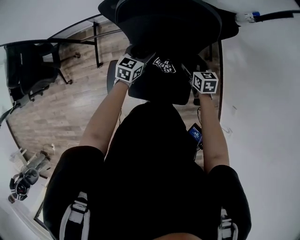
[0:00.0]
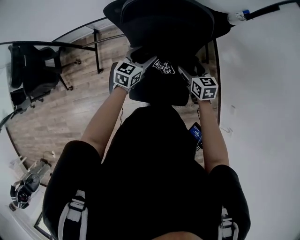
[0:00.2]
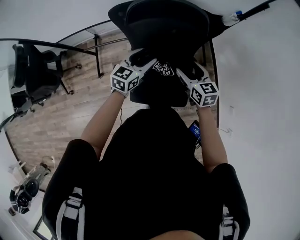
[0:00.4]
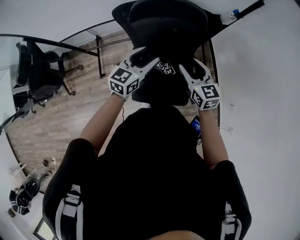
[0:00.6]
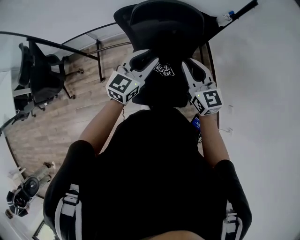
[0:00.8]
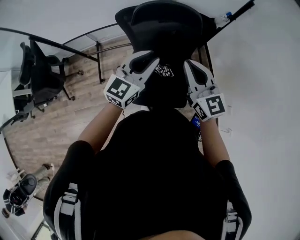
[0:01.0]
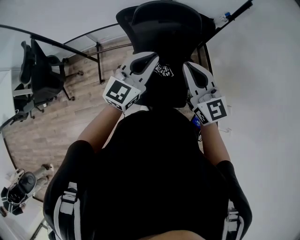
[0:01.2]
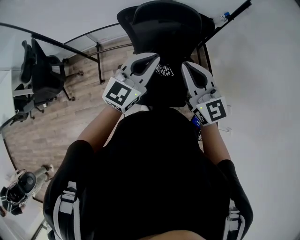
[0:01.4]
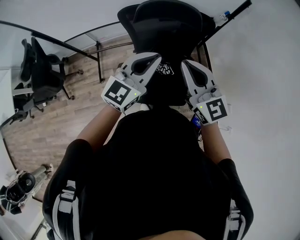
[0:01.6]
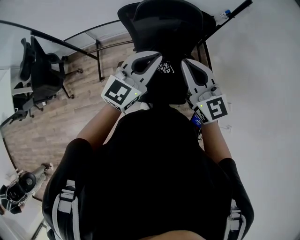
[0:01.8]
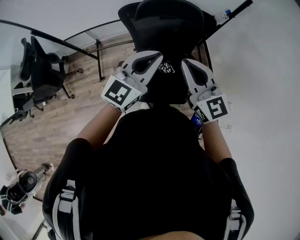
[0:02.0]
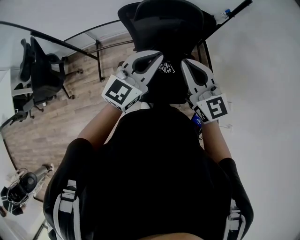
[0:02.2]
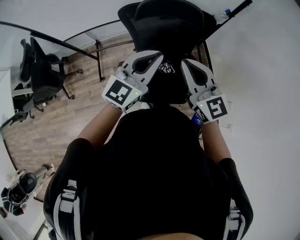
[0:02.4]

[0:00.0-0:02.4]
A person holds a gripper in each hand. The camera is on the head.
0:00.0 to 0:01.2: Both grippers move upward, some 40 cm. The left gripper changes its angle by roughly 30 degrees, and closes its fingers. Meanwhile the right gripper points its fingers some 40 degrees further upward, and closes up.
0:01.2 to 0:02.4: The grippers stay close to where they were, moving slightly.

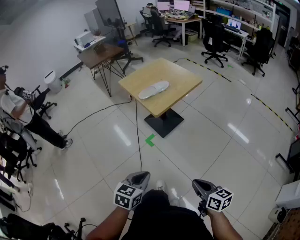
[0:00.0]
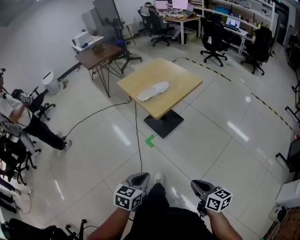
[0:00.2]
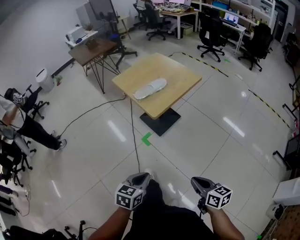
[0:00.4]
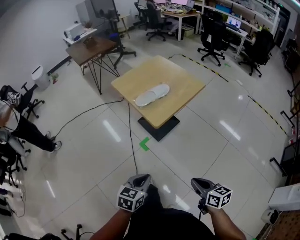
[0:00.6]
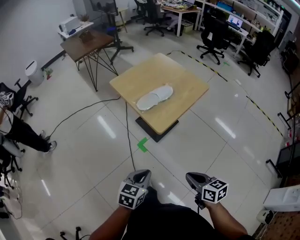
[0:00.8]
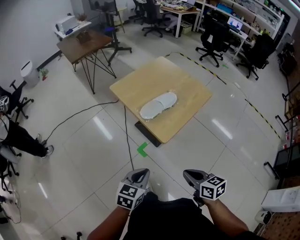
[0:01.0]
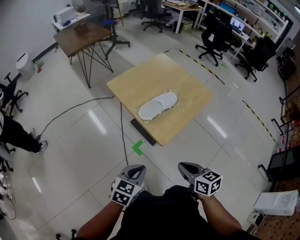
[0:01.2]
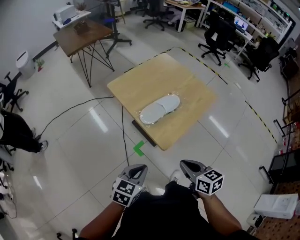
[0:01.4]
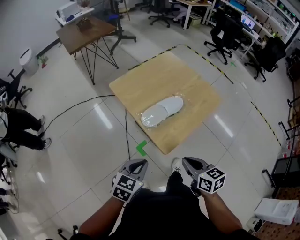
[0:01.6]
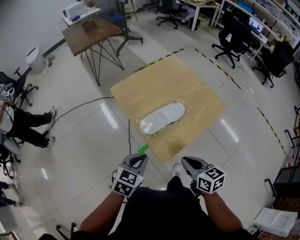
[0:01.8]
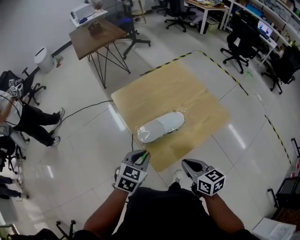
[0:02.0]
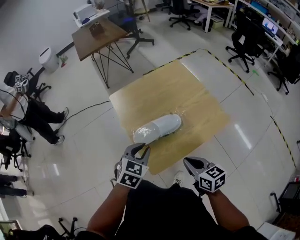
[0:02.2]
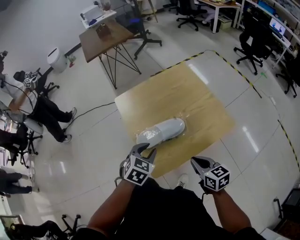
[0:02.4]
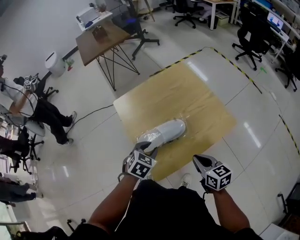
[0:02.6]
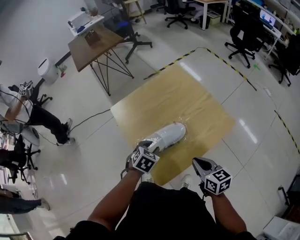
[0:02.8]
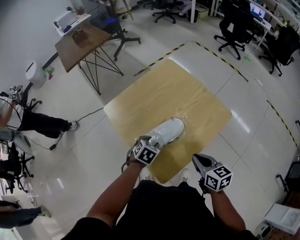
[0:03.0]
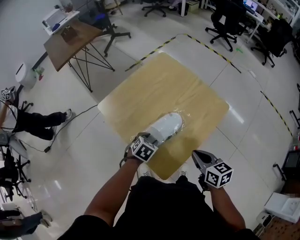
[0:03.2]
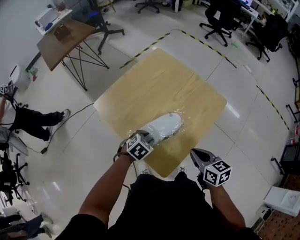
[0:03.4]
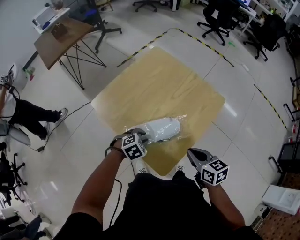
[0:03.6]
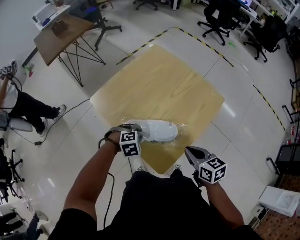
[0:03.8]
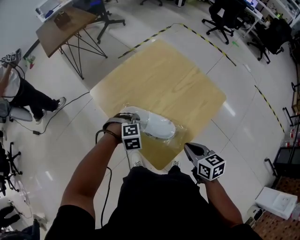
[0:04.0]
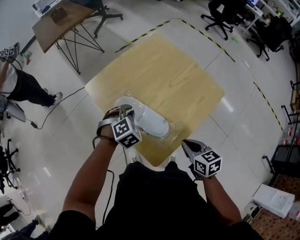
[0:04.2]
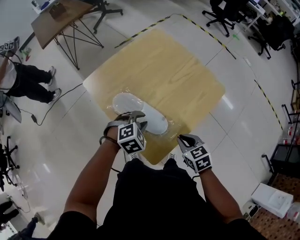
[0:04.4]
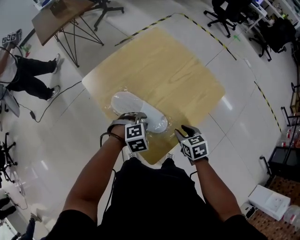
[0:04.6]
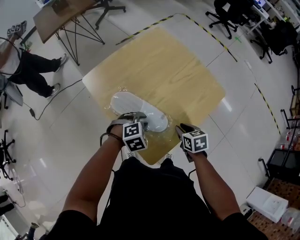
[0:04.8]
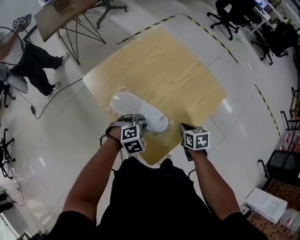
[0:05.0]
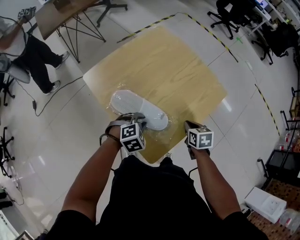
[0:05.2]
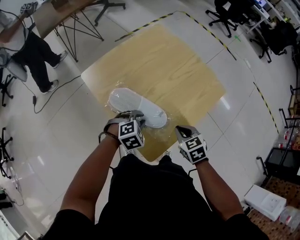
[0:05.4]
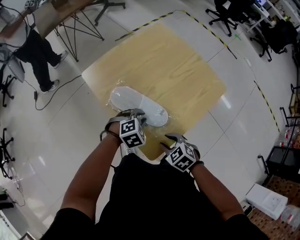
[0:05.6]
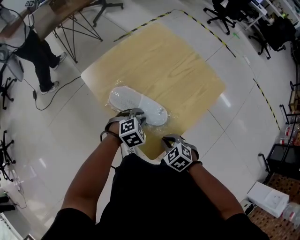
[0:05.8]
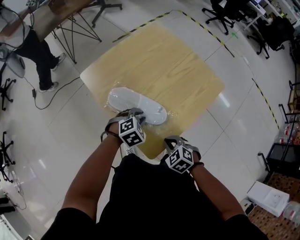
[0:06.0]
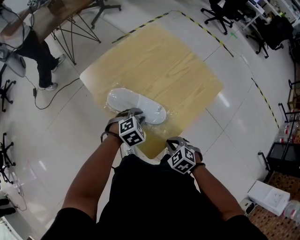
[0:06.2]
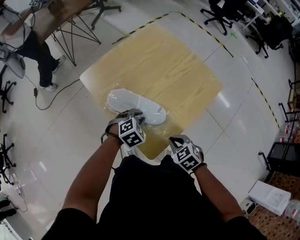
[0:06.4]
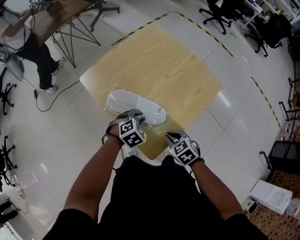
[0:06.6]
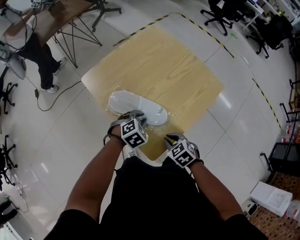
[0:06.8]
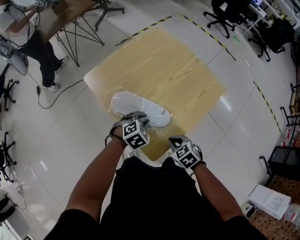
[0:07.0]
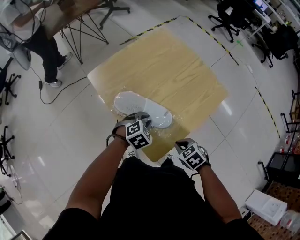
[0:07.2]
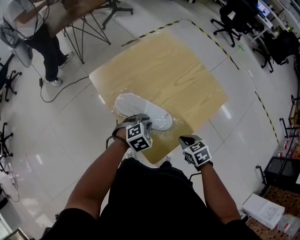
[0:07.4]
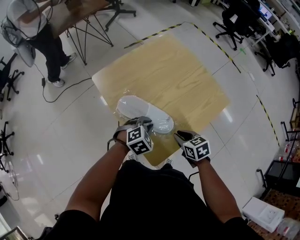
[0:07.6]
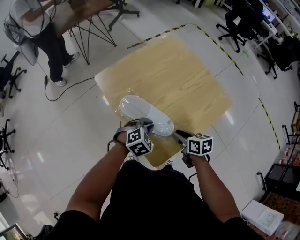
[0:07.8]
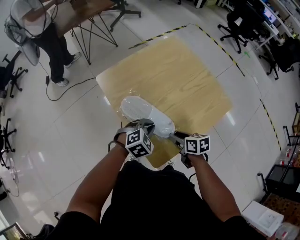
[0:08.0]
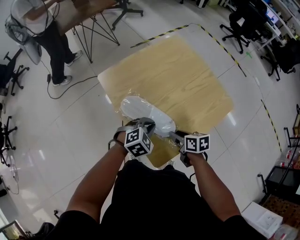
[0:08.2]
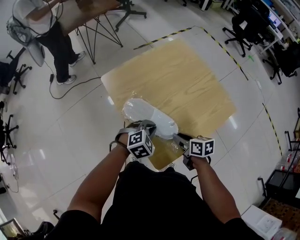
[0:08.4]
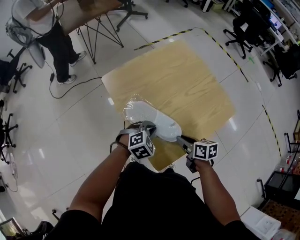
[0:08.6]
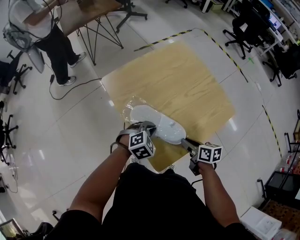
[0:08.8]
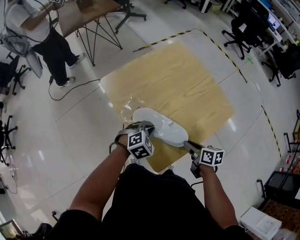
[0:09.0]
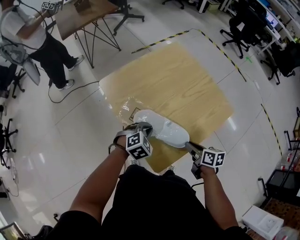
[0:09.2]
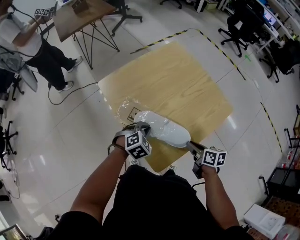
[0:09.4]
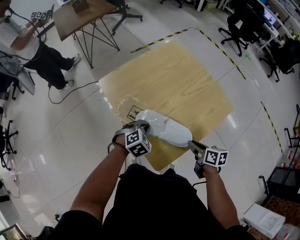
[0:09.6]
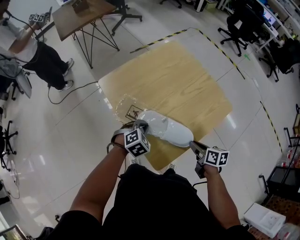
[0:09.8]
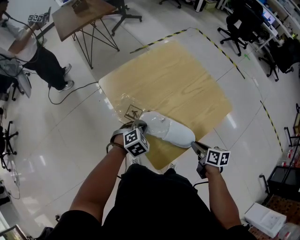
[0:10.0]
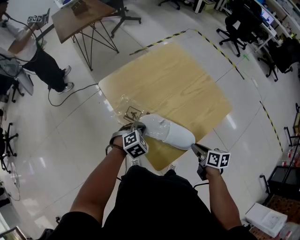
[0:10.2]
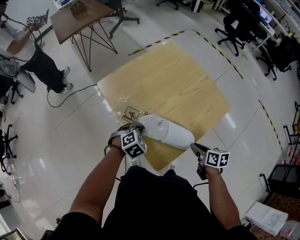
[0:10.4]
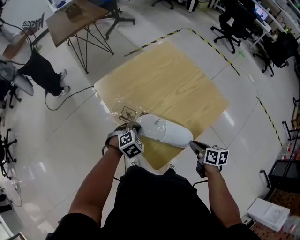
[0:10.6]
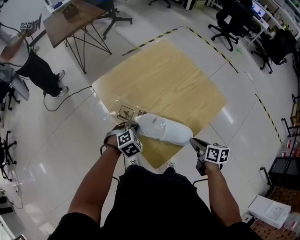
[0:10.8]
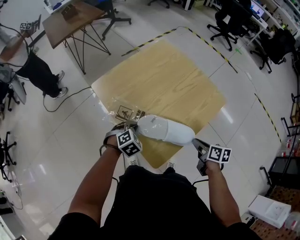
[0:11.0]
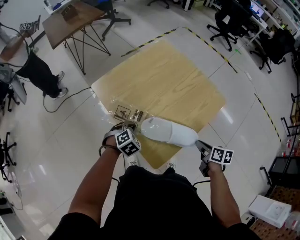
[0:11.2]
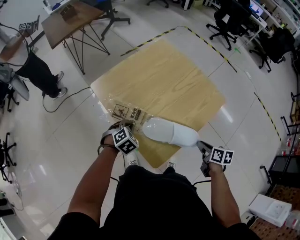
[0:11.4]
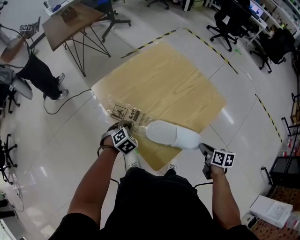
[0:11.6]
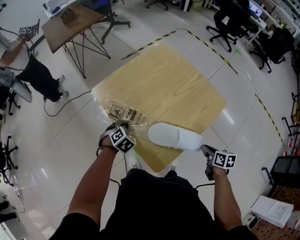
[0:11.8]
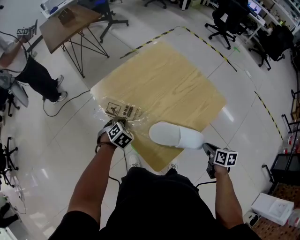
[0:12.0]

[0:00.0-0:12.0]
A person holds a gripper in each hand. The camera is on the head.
0:00.0 to 0:01.6: Both grippers move forward, roughly 40 cm.
0:01.6 to 0:03.0: The right gripper is displaced forward and to the right by approximately 20 cm, while the left gripper is displaced forward, downward and to the right by some 30 cm, swivels about 30 degrees, and opens up.
0:03.0 to 0:04.4: The right gripper is displaced downward by some 10 cm, and swivels some 30 degrees, while the left gripper swivels roughly 40 degrees.
0:04.4 to 0:06.0: The right gripper moves backward, downward and to the left, some 10 cm, rotates some 30 degrees, and opens and closes again.
0:06.0 to 0:07.6: The right gripper travels forward by about 10 cm, and changes its angle by about 30 degrees.
0:07.6 to 0:09.0: The right gripper swivels roughly 30 degrees.
0:09.0 to 0:10.4: The right gripper moves approximately 5 cm.
0:10.4 to 0:12.0: The right gripper heads to the right, covering roughly 10 cm, while the left gripper travels to the left and forward by some 10 cm.

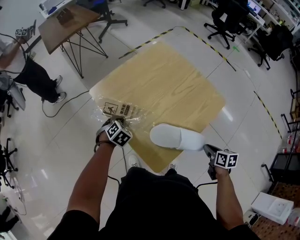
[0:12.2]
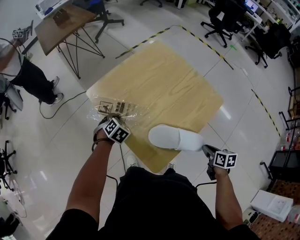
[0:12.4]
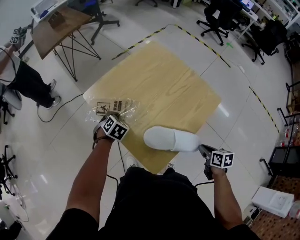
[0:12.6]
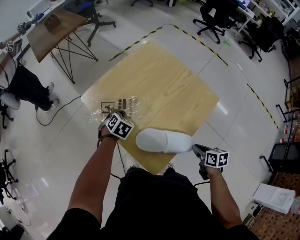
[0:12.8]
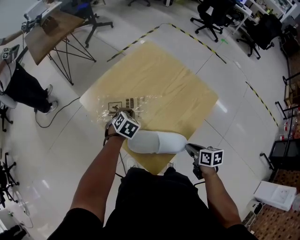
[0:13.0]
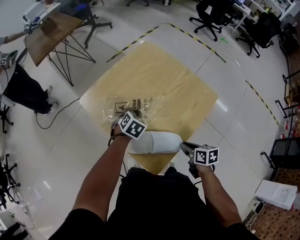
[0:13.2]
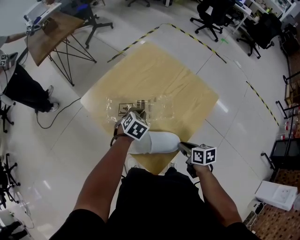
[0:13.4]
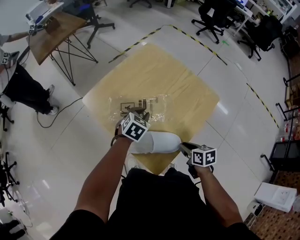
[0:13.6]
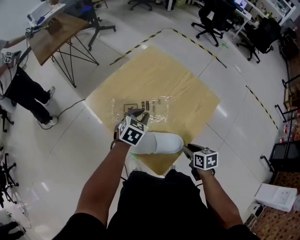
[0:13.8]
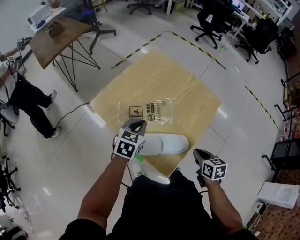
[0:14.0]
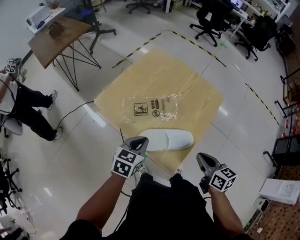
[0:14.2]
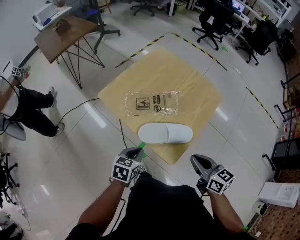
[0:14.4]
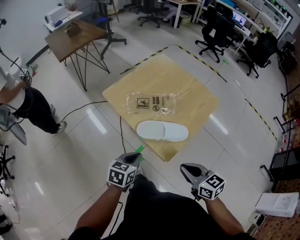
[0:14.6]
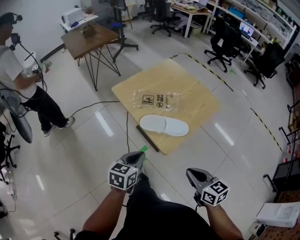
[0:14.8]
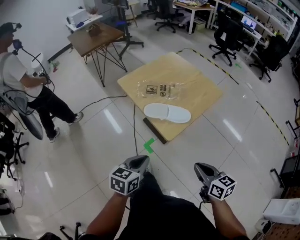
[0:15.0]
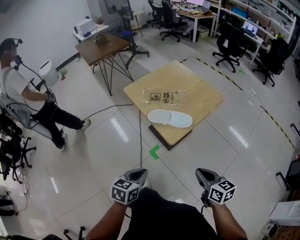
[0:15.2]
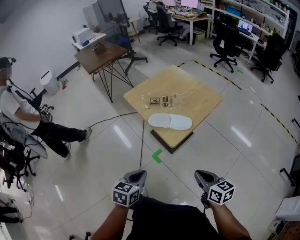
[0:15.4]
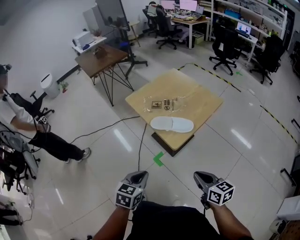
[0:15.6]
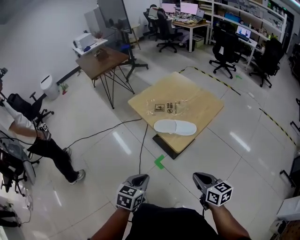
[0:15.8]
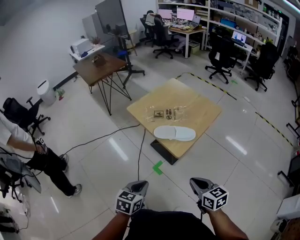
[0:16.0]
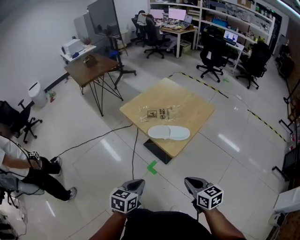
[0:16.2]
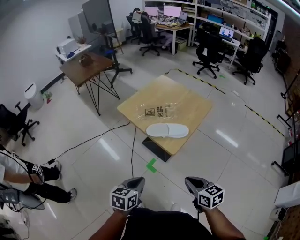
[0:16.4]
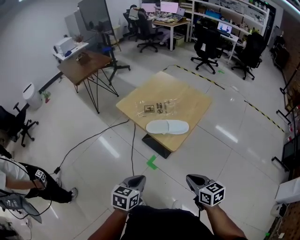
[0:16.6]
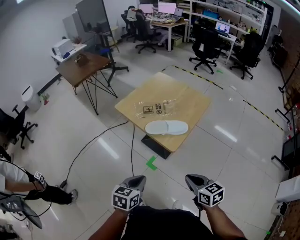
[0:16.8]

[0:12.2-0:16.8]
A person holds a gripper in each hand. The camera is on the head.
0:12.2 to 0:13.8: The right gripper travels to the left by some 10 cm. Meanwhile the left gripper goes approximately 15 cm to the right and upward, and changes its angle by roughly 30 degrees.
0:13.8 to 0:15.2: The right gripper moves backward and upward, some 35 cm, changes its angle by some 30 degrees, and closes its fingers; the left gripper travels backward by about 50 cm, and swivels roughly 30 degrees.
0:15.2 to 0:16.8: The right gripper goes approximately 10 cm to the left. Meanwhile the left gripper is displaced to the left by roughly 5 cm.

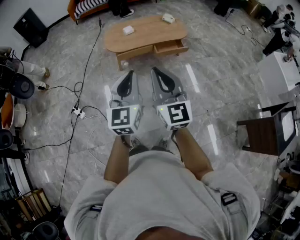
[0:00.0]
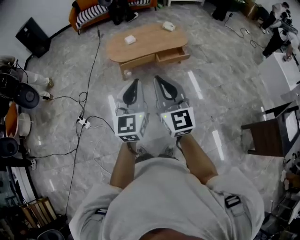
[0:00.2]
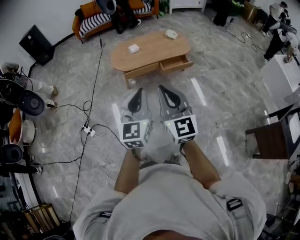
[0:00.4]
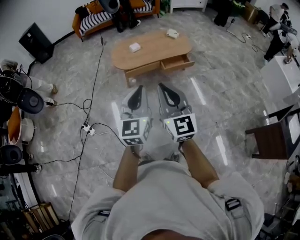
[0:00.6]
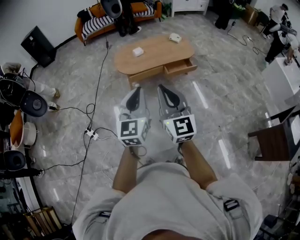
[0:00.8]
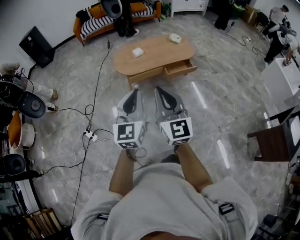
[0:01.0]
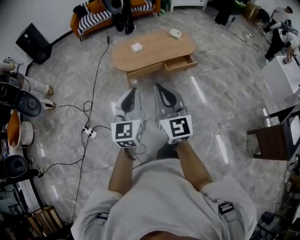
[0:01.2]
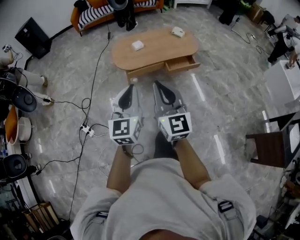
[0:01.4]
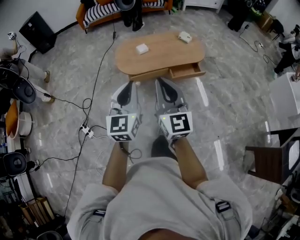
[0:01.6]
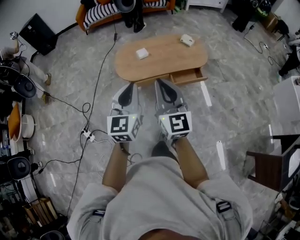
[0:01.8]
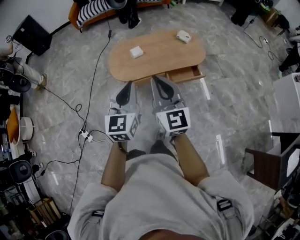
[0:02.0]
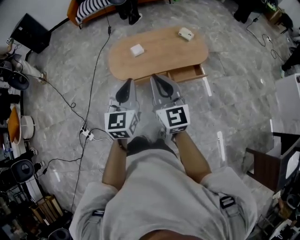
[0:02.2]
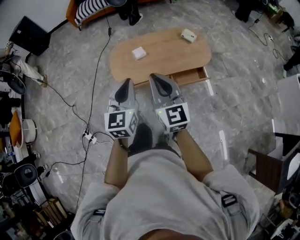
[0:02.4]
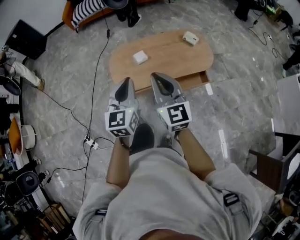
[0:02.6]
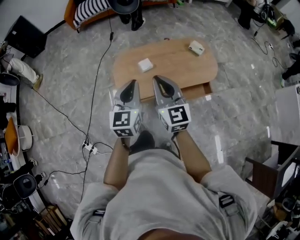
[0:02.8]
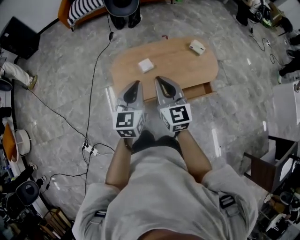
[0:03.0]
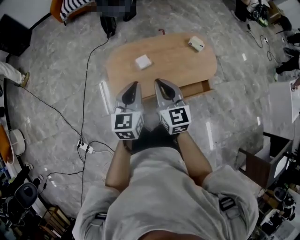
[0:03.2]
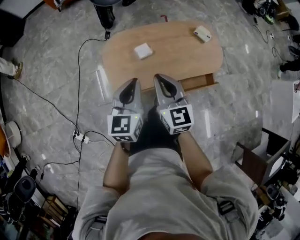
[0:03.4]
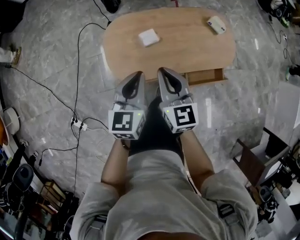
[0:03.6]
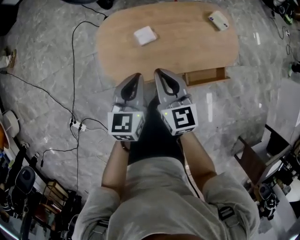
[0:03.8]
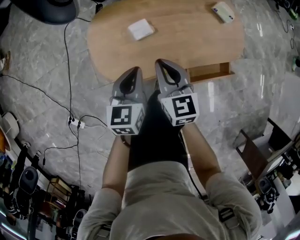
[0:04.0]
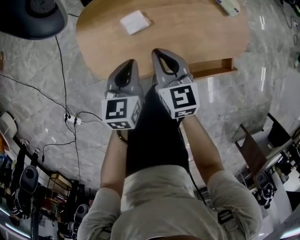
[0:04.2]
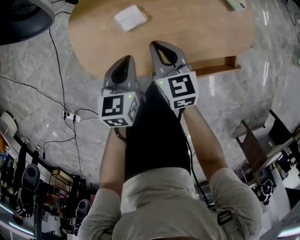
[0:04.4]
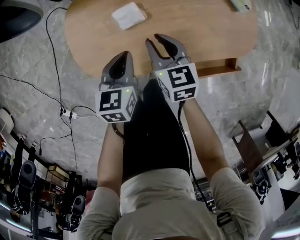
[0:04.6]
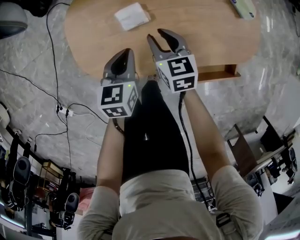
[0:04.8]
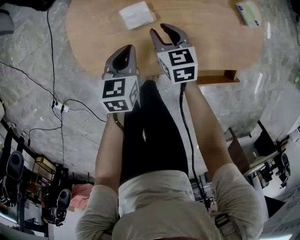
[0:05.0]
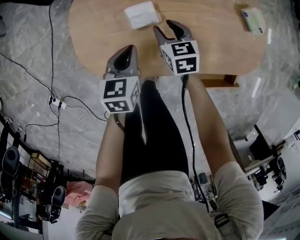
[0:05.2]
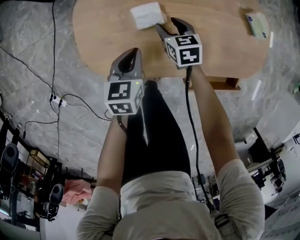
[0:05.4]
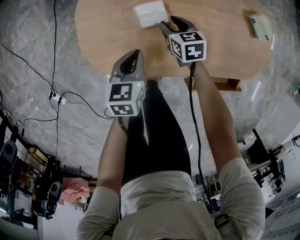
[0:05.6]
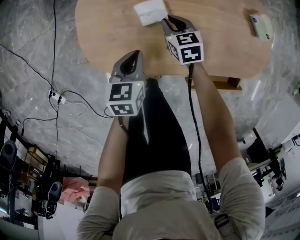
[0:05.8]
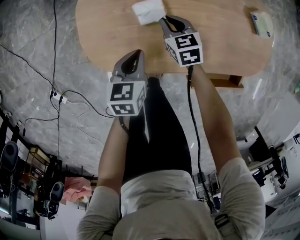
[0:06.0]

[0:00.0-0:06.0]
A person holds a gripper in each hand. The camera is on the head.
0:00.0 to 0:01.6: The two grippers go about 20 cm forward.
0:01.6 to 0:03.0: The pair of grippers is taken forward, roughly 40 cm.
0:03.0 to 0:04.4: The two grippers go approximately 40 cm downward and forward. The left gripper rotates roughly 30 degrees. Meanwhile the right gripper rotates roughly 30 degrees.
0:04.4 to 0:06.0: The right gripper heads downward and forward, covering approximately 20 cm, turns by some 20 degrees, and opens, then closes once more. The left gripper is displaced downward by roughly 10 cm.
